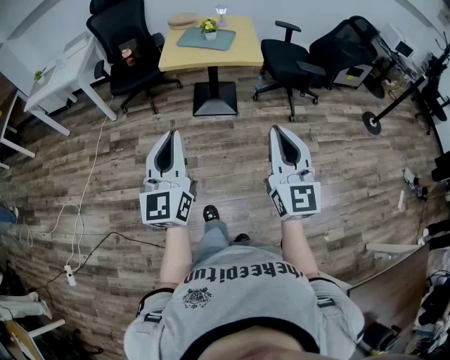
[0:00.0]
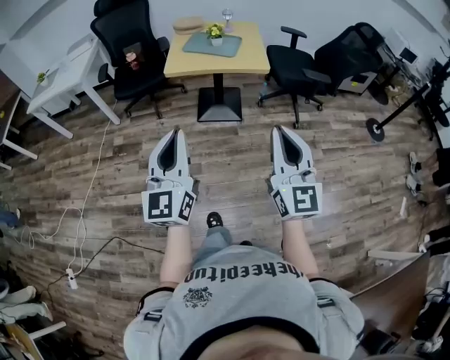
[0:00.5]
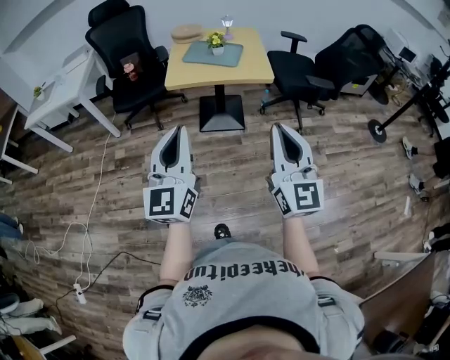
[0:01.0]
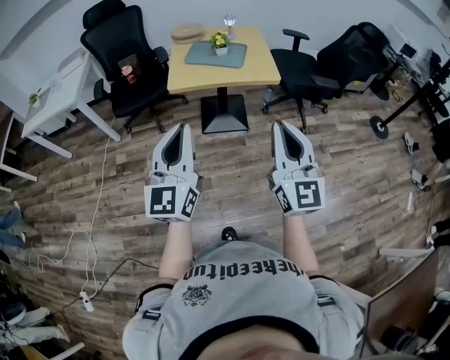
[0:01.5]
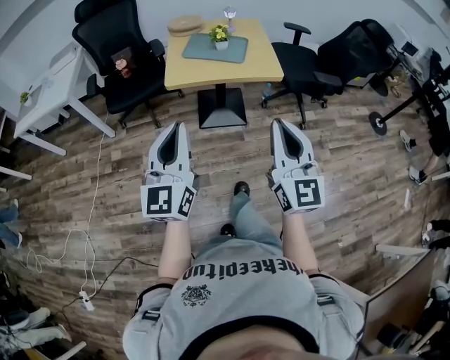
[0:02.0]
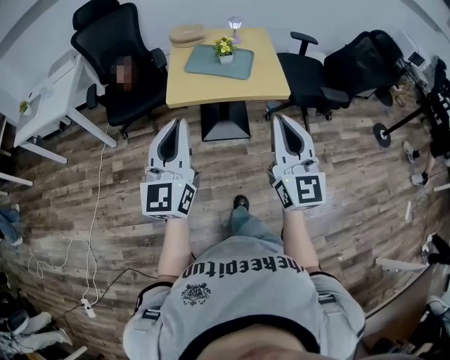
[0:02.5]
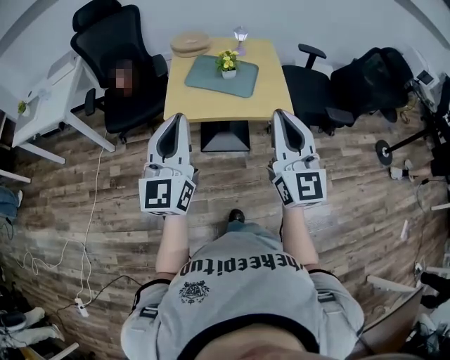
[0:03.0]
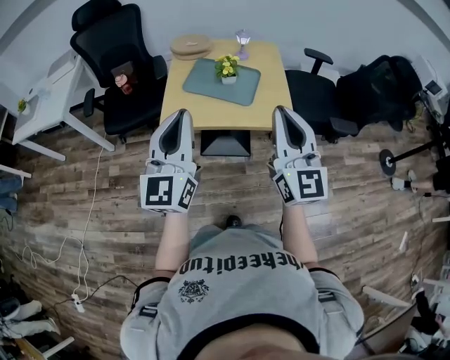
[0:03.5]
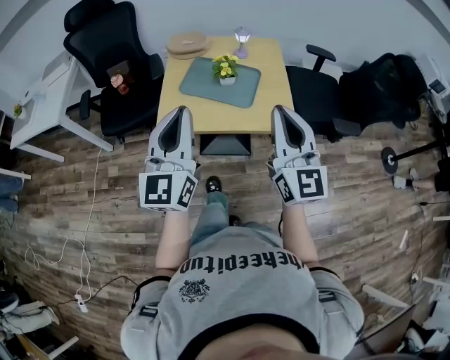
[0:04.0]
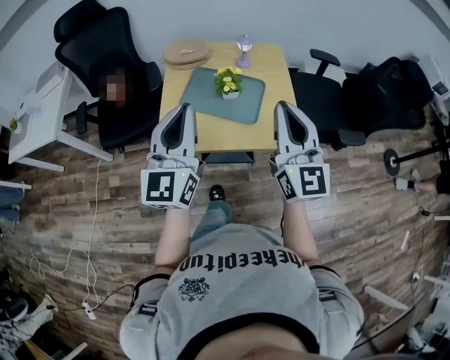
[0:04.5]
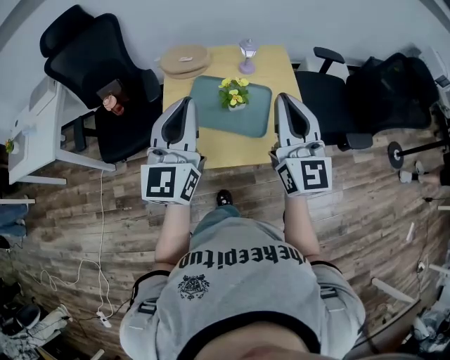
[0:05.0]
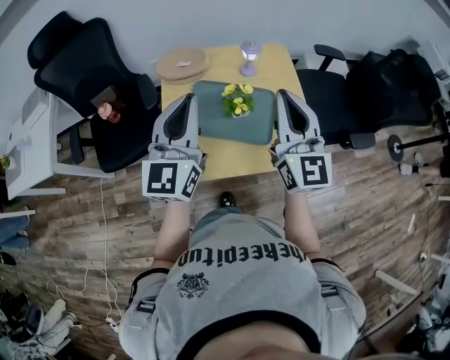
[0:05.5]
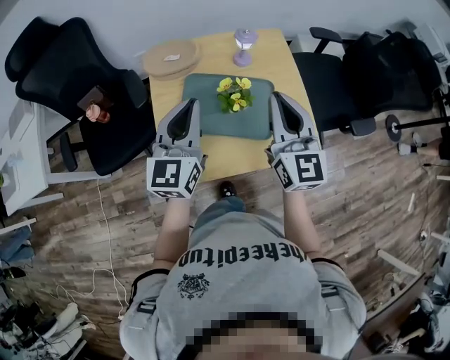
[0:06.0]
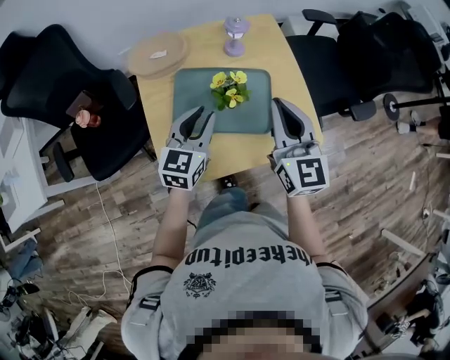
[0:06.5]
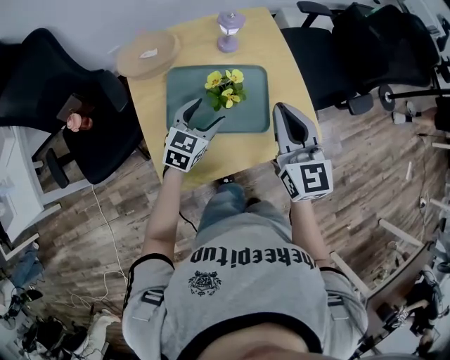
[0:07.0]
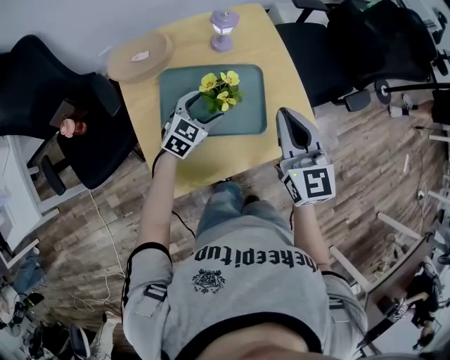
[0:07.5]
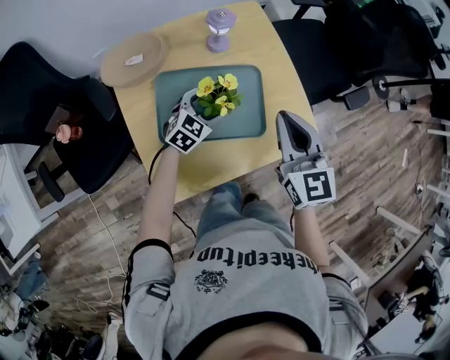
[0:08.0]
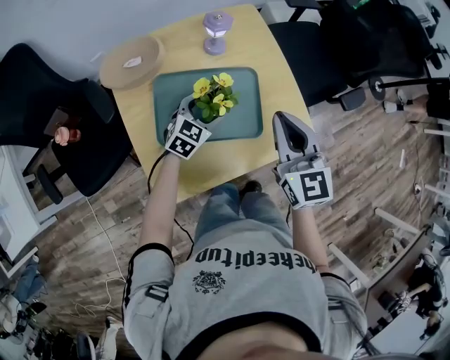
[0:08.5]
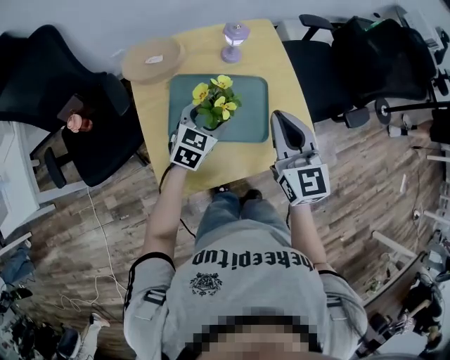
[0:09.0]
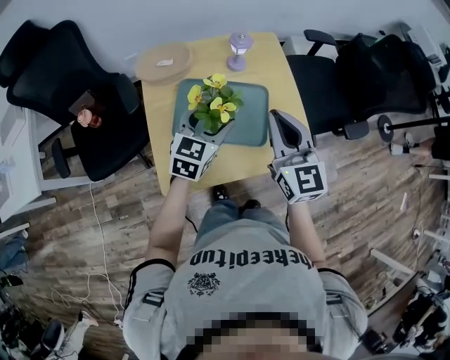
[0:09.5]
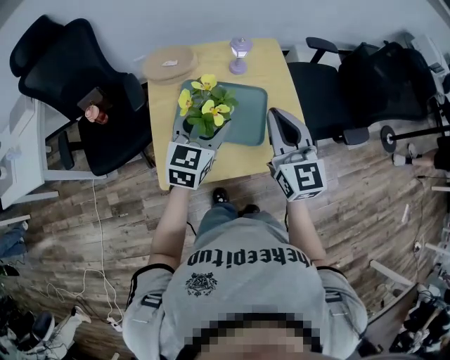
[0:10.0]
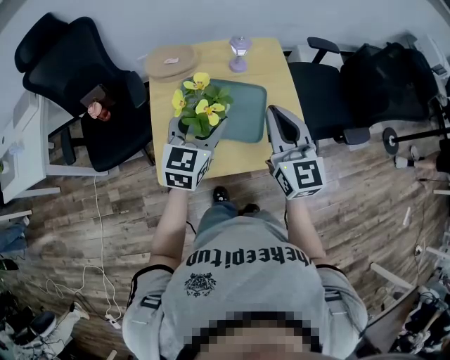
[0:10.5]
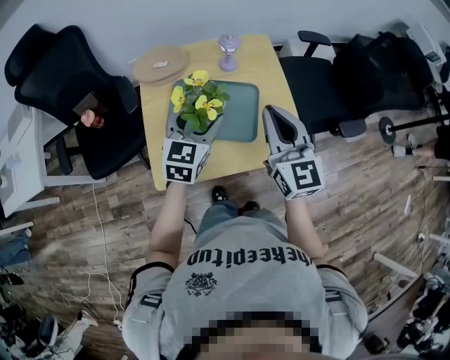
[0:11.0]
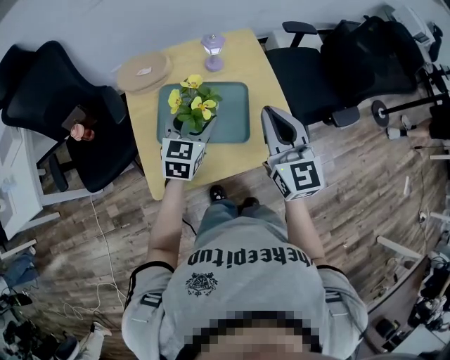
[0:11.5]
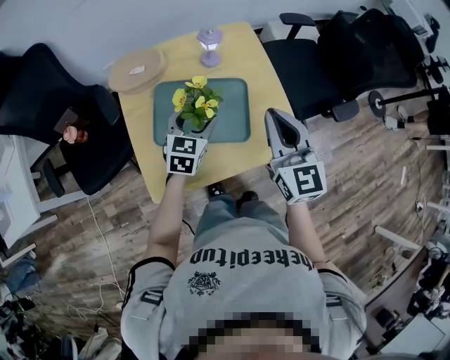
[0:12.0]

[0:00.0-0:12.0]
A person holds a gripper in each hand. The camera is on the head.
0.0 to 2.0 s: Both grippers move forward and to the left, approximately 25 cm.
2.0 to 4.0 s: The two grippers go roughly 35 cm forward.
4.0 to 6.0 s: Both grippers travel together forward, some 30 cm. The left gripper turns by about 20 degrees.
6.0 to 8.0 s: The left gripper travels downward by about 30 cm, angles its fingers downward, by about 30 degrees, and opens up. The right gripper travels downward by some 10 cm.
8.0 to 10.0 s: The left gripper travels upward and backward by some 25 cm, and rotates approximately 40 degrees. Meanwhile the right gripper heads upward, covering about 10 cm.
10.0 to 12.0 s: The left gripper goes about 15 cm downward and forward; the right gripper moves approximately 5 cm.

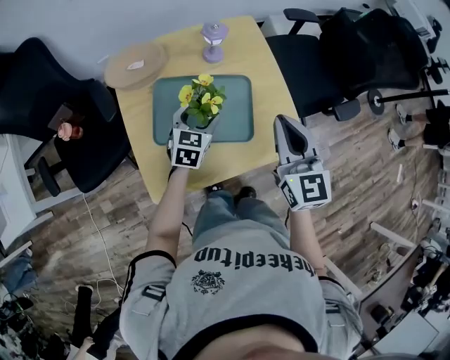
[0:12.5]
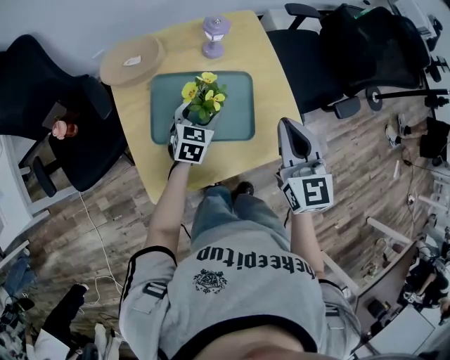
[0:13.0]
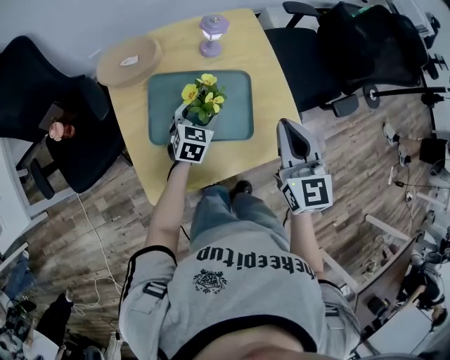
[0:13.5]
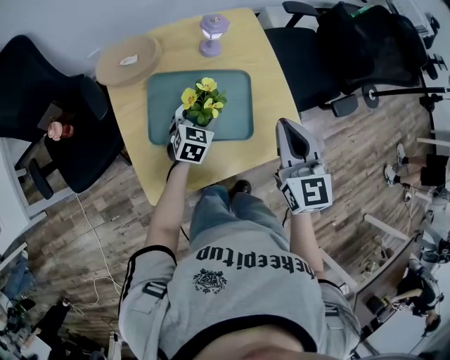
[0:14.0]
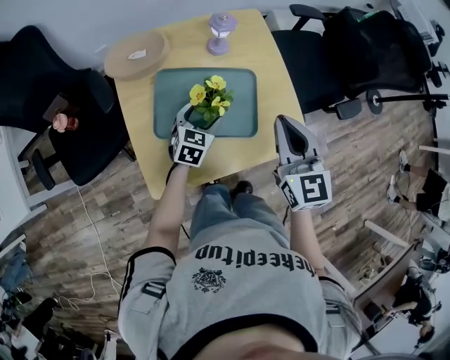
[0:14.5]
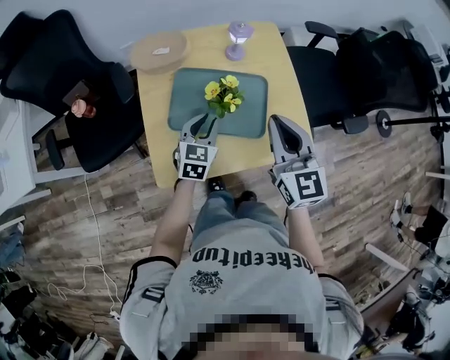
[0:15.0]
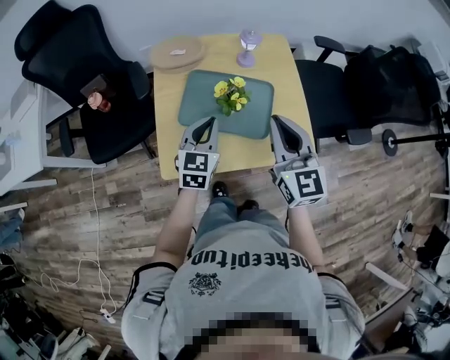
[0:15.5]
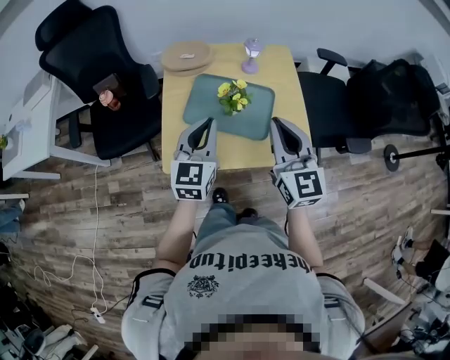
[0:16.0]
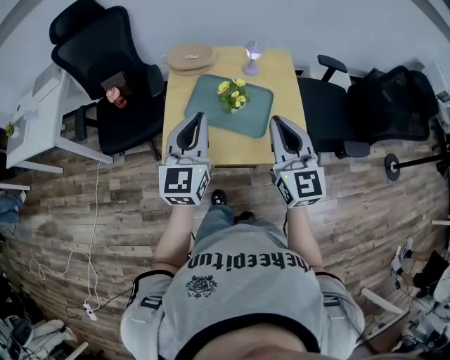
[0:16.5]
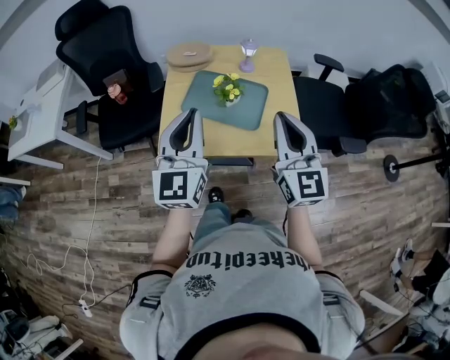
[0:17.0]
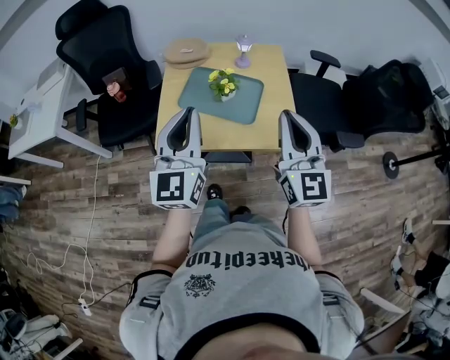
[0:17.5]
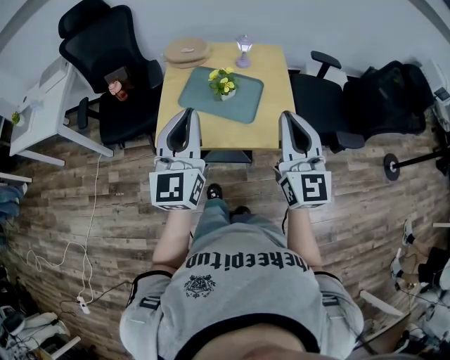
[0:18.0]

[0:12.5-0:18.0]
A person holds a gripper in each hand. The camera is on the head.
12.5 to 14.5 s: The left gripper moves downward, roughly 5 cm.
14.5 to 16.0 s: The right gripper is displaced backward and upward by some 10 cm. Meanwhile the left gripper goes roughly 30 cm upward and backward, rotates roughly 40 degrees, and closes.
16.0 to 18.0 s: The left gripper goes roughly 20 cm backward and upward, and rotates roughly 20 degrees. Meanwhile the right gripper shifts about 15 cm backward, to the right and upward.

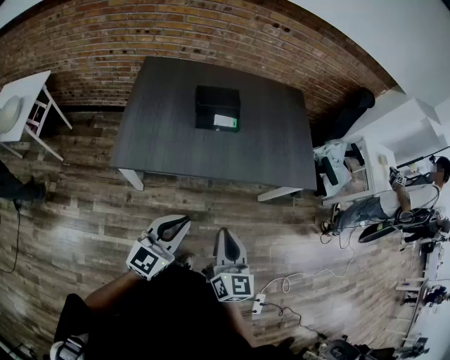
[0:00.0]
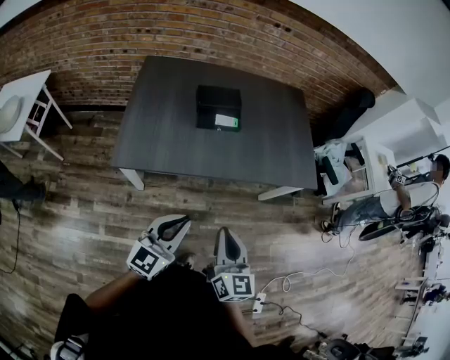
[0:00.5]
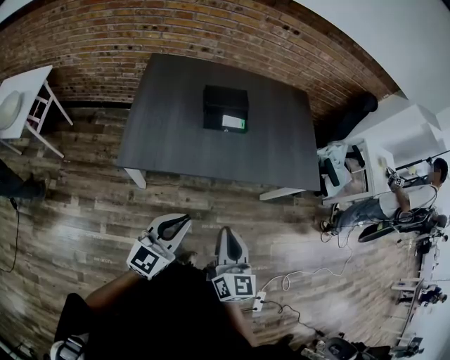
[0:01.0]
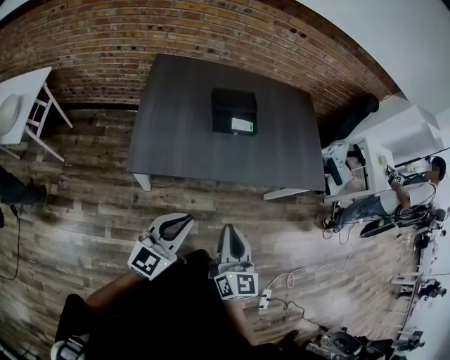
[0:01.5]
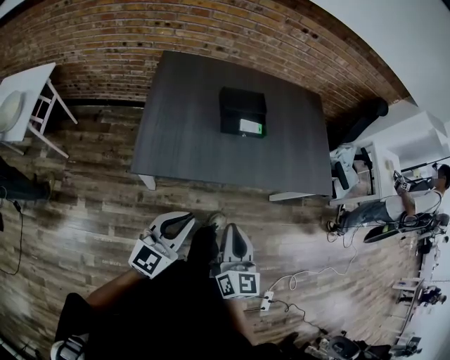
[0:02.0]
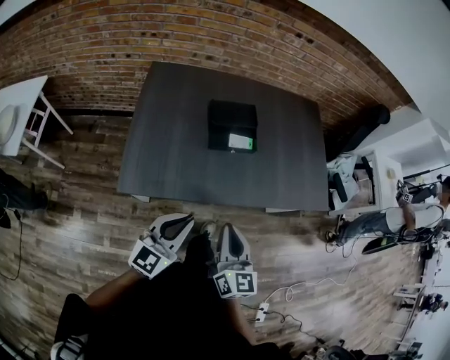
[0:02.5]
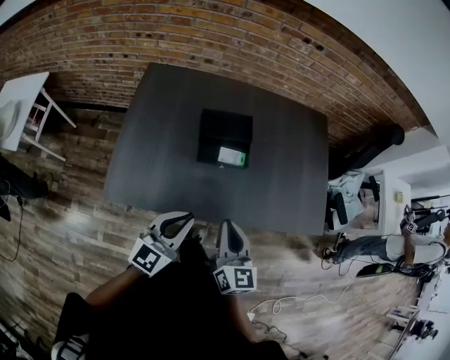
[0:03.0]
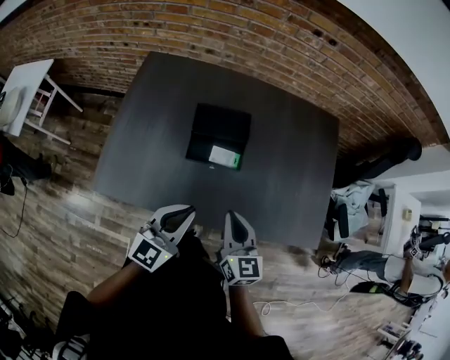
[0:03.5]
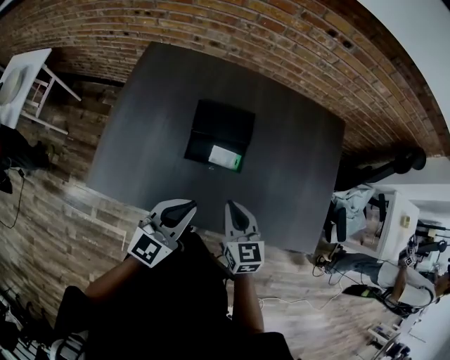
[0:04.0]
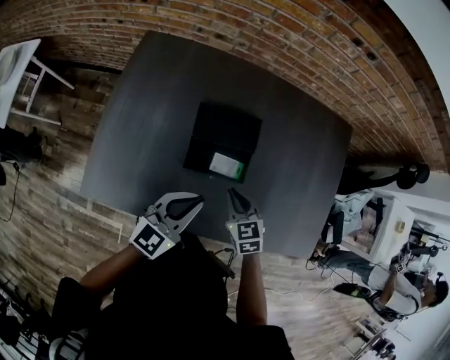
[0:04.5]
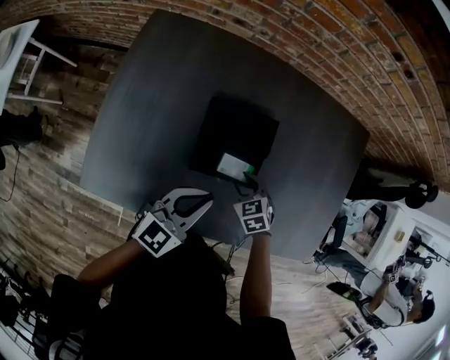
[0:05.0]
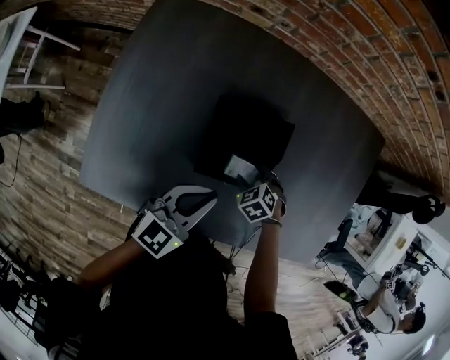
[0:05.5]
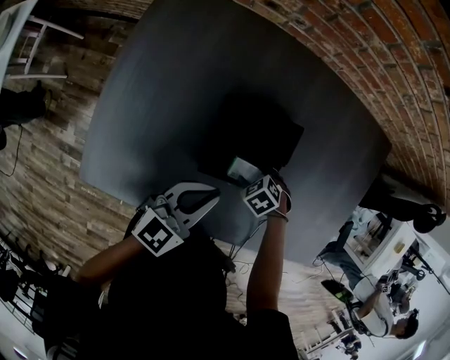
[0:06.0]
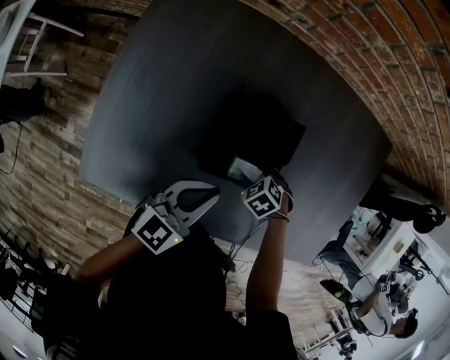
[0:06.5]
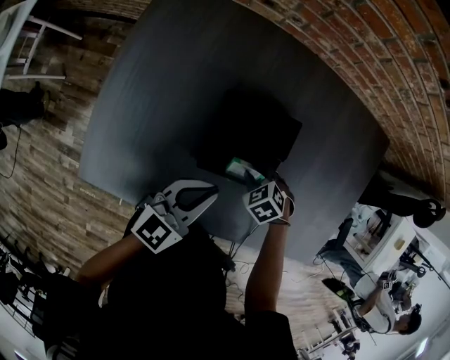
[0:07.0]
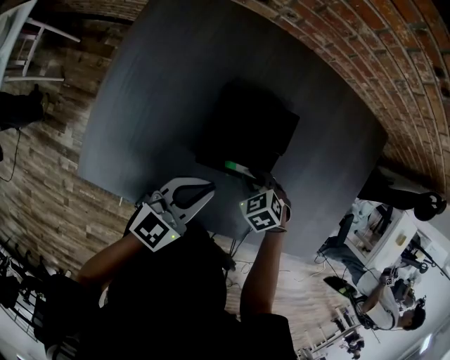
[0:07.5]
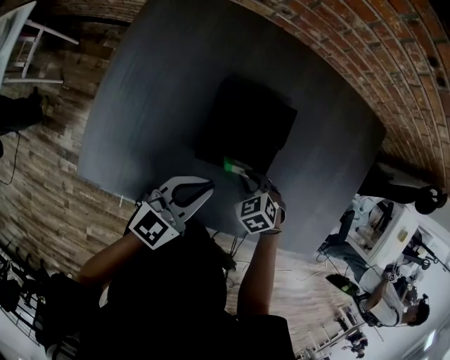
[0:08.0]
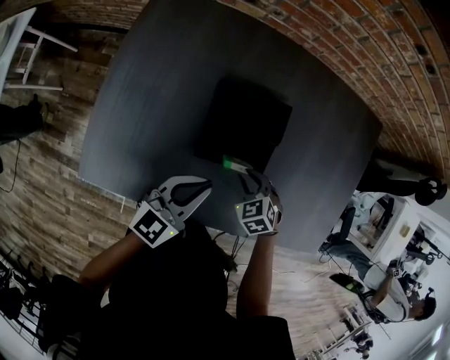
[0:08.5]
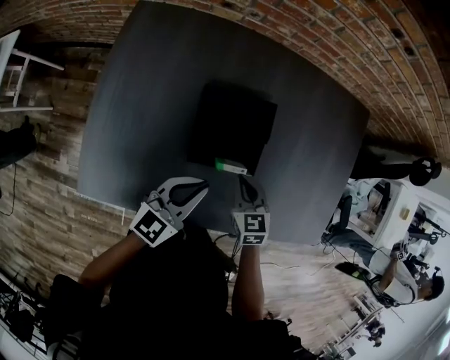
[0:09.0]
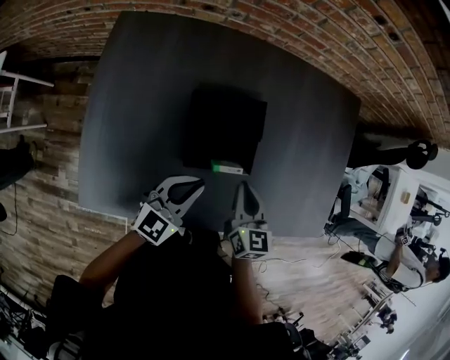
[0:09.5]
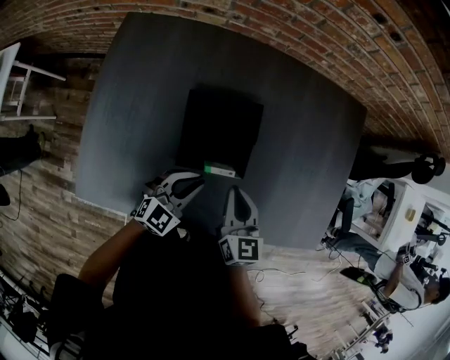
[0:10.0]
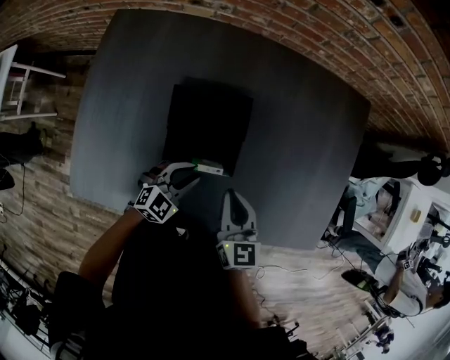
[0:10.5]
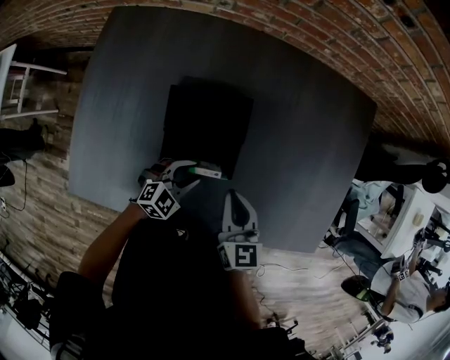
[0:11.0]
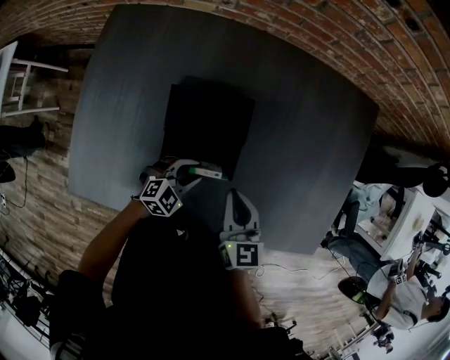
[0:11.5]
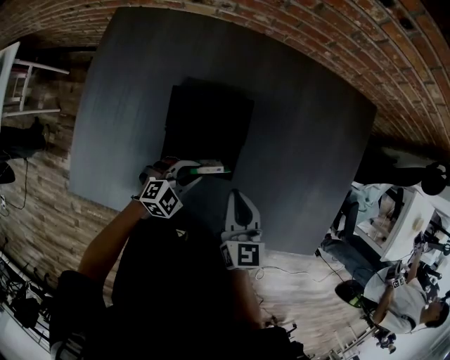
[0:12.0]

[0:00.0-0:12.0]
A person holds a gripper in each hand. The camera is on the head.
0.0 to 2.0 s: Both grippers travel together to the left, approximately 15 cm.
2.0 to 4.0 s: The left gripper travels forward and to the right by some 40 cm. Meanwhile the right gripper heads forward, covering approximately 40 cm, and swivels some 30 degrees.
4.0 to 6.0 s: The right gripper is displaced downward by approximately 25 cm, tips its fingers downward by approximately 50 degrees, and opens. Meanwhile the left gripper shifts by approximately 20 cm.
6.0 to 8.0 s: The right gripper travels upward by roughly 5 cm, and closes.
8.0 to 10.0 s: The right gripper is displaced upward by about 15 cm, and tilts its fingers roughly 50 degrees upward; the left gripper is displaced downward by about 5 cm, and turns by some 20 degrees.
10.0 to 12.0 s: The left gripper shifts about 10 cm downward, and swivels approximately 20 degrees. The right gripper moves some 5 cm.
